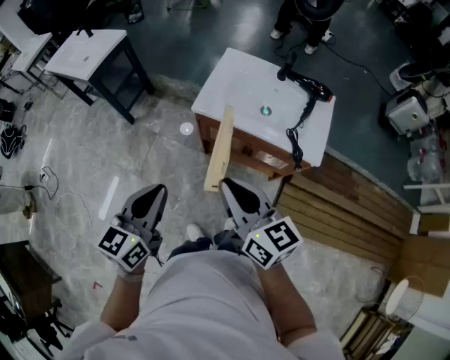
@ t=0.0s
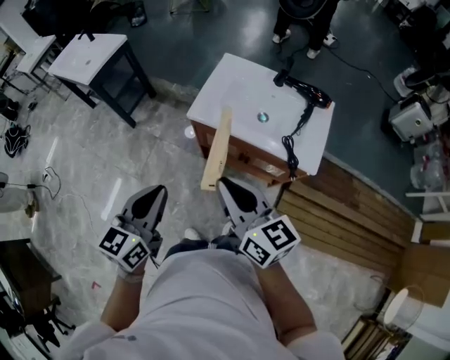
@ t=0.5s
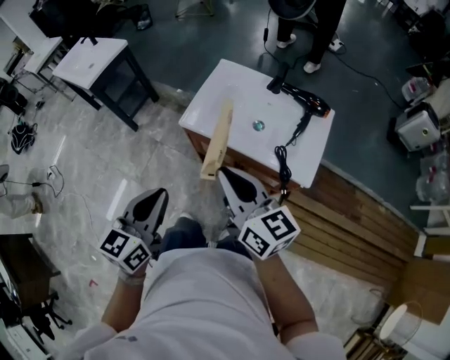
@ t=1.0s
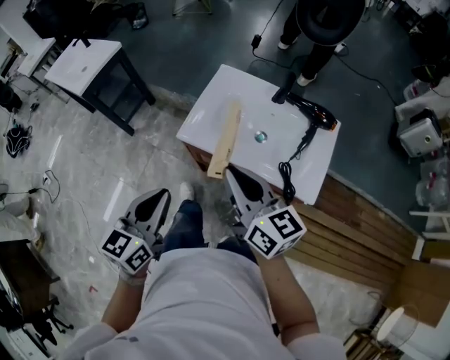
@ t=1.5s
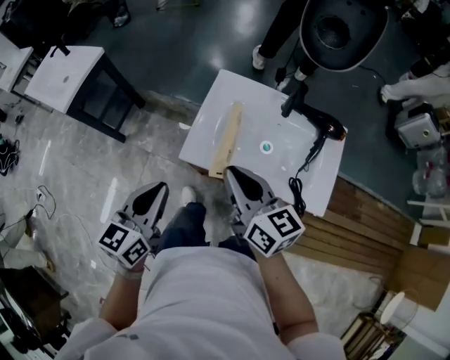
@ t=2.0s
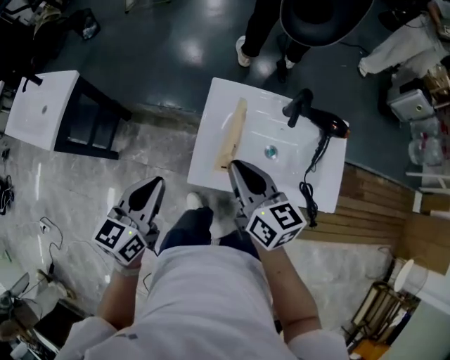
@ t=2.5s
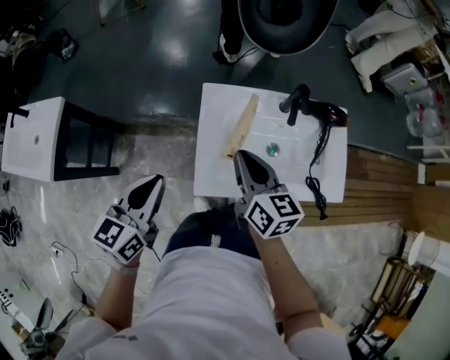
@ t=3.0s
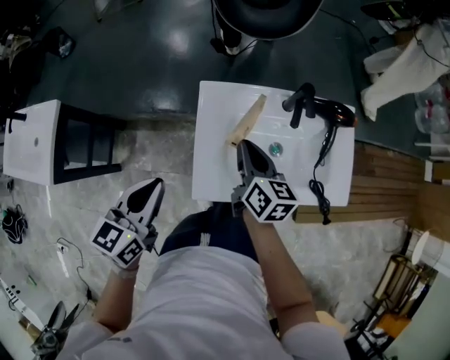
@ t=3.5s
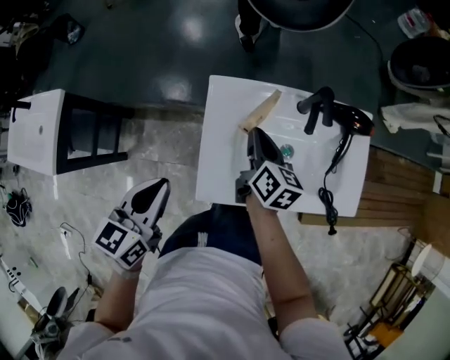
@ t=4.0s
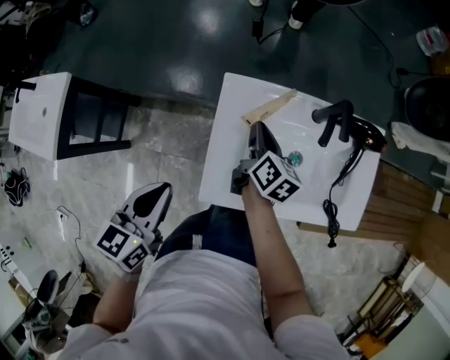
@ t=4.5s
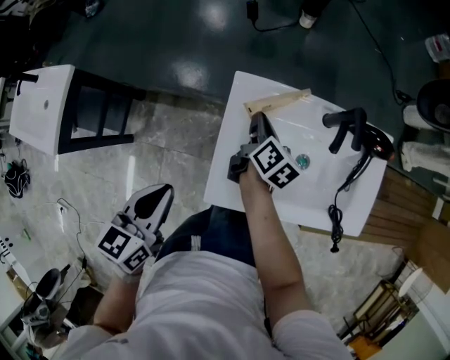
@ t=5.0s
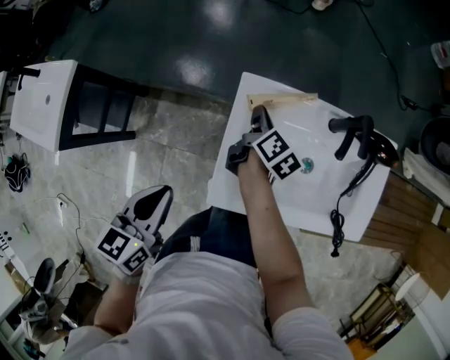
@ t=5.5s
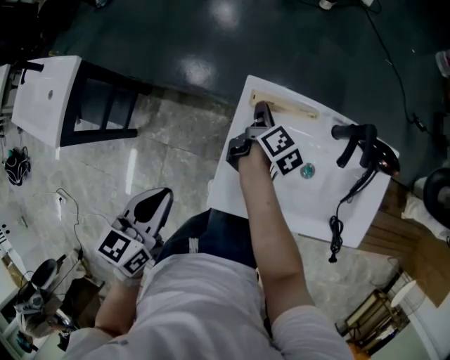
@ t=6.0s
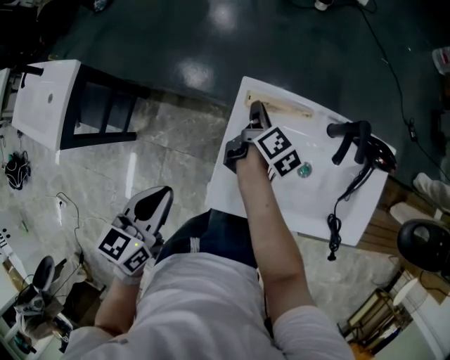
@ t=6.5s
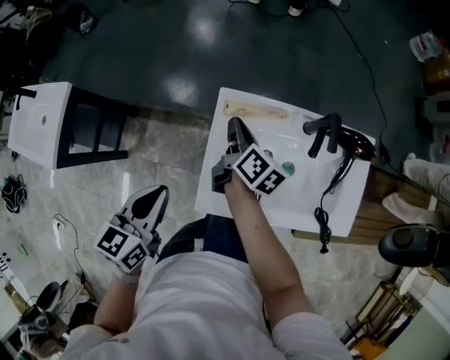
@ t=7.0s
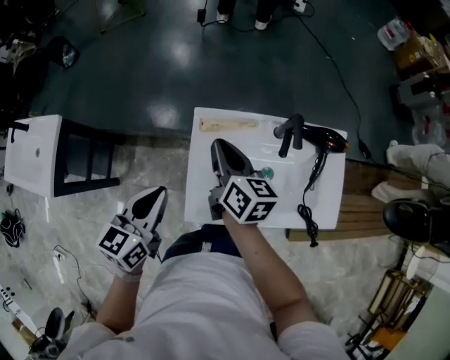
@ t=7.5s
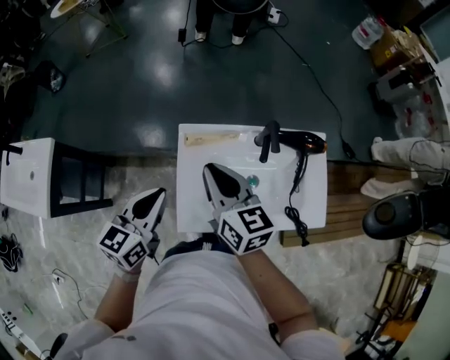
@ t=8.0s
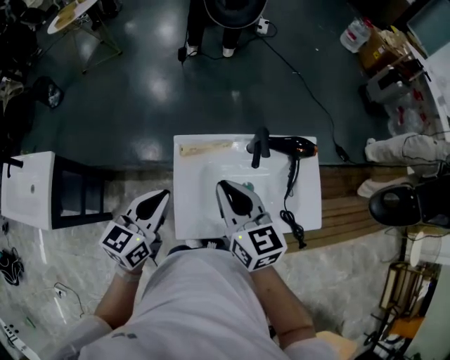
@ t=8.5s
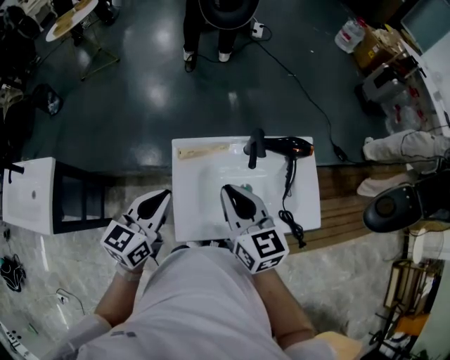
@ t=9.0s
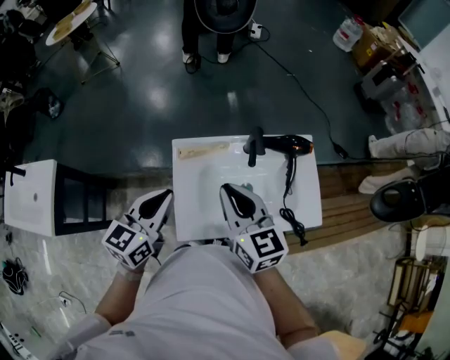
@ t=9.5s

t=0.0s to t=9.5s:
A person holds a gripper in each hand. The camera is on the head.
t=0.0s to t=2.0s: The two grippers go some 25 cm forward.
t=2.0s to t=4.0s: The right gripper changes place by roughly 30 cm, and rotates about 40 degrees. Meanwhile the left gripper ends up roughly 20 cm from where it was, and swivels approximately 20 degrees.
t=4.0s to t=5.5s: The left gripper moves about 5 cm. The right gripper moves downward, to the left and forward, some 15 cm.
t=5.5s to t=7.5s: The right gripper is displaced upward by some 15 cm, and rotates approximately 30 degrees. The left gripper shifts about 10 cm to the right, upward and forward.
t=7.5s to t=9.5s: The right gripper shifts roughly 15 cm upward, to the right and backward, and swivels about 30 degrees; the left gripper shifts roughly 5 cm to the right.

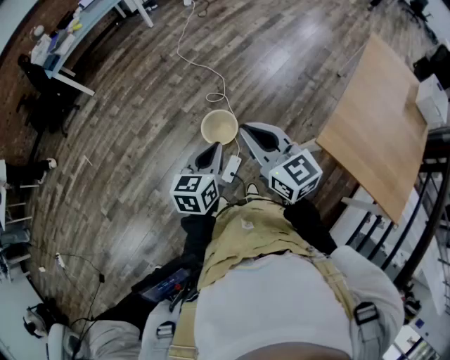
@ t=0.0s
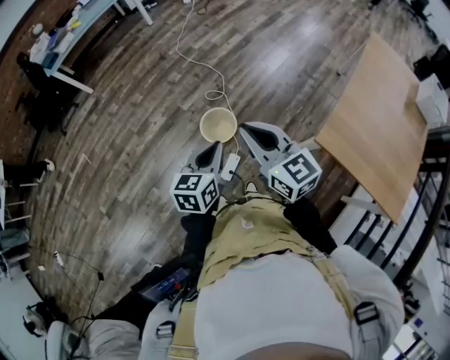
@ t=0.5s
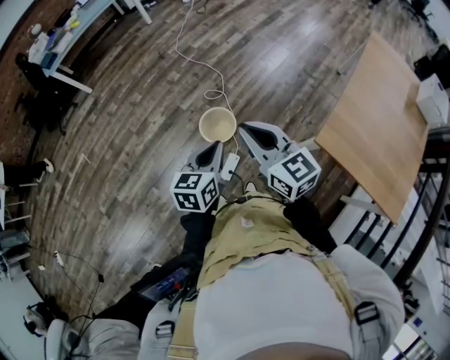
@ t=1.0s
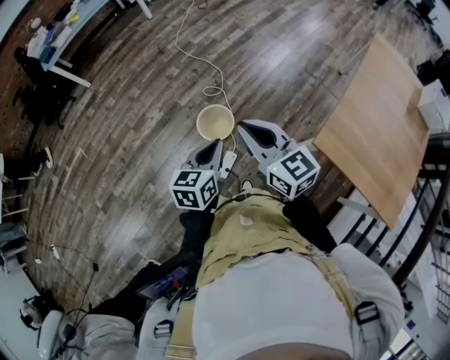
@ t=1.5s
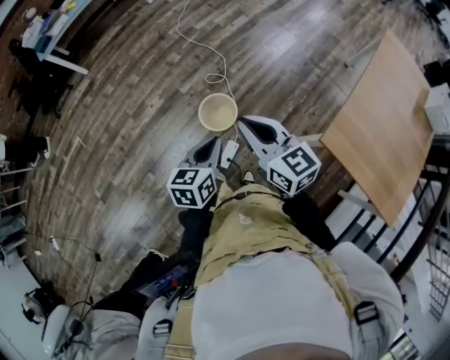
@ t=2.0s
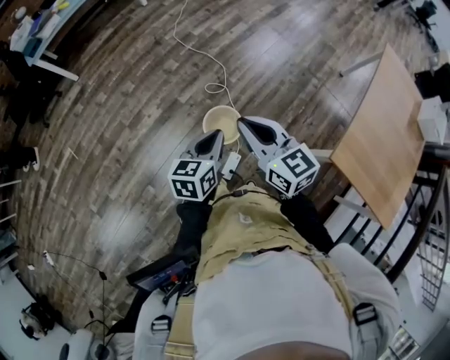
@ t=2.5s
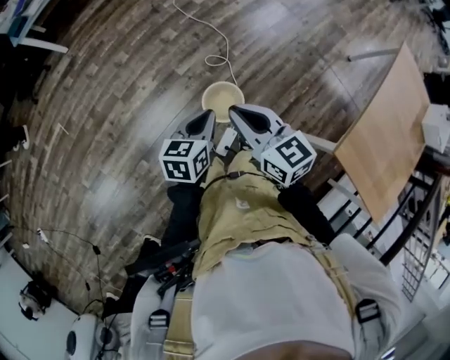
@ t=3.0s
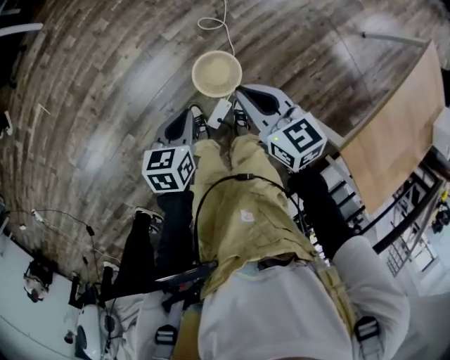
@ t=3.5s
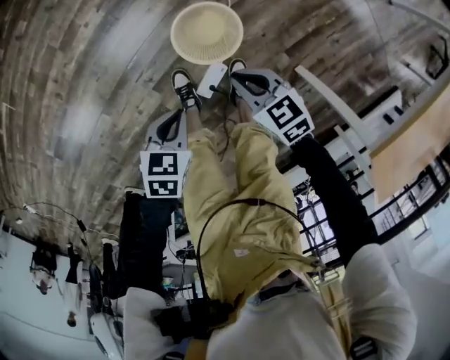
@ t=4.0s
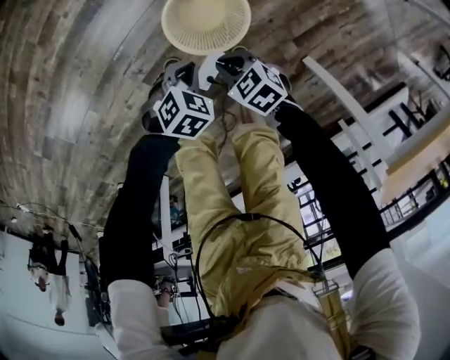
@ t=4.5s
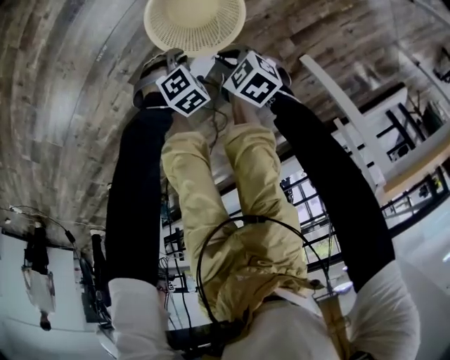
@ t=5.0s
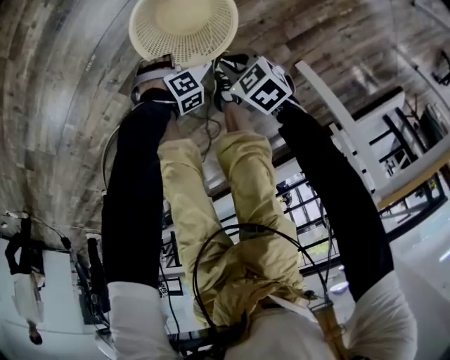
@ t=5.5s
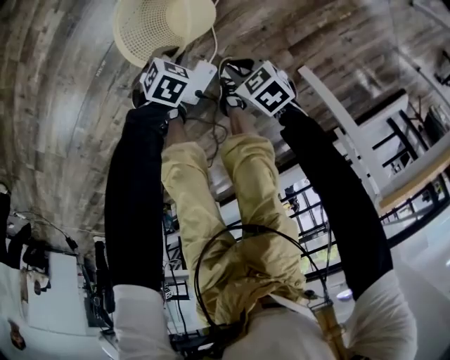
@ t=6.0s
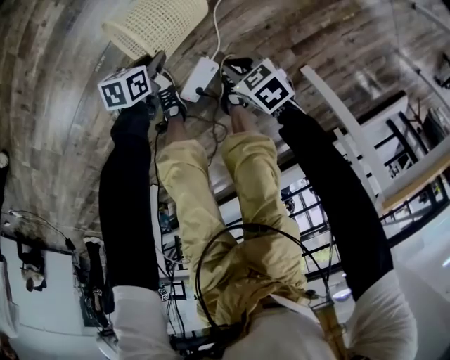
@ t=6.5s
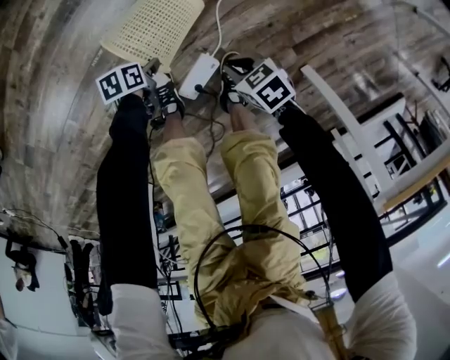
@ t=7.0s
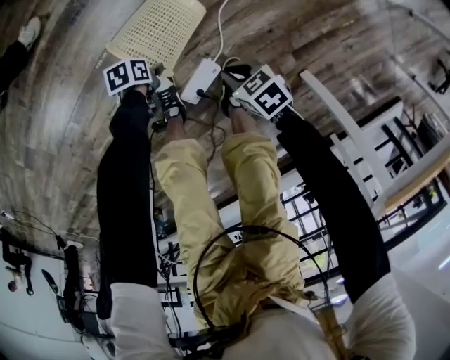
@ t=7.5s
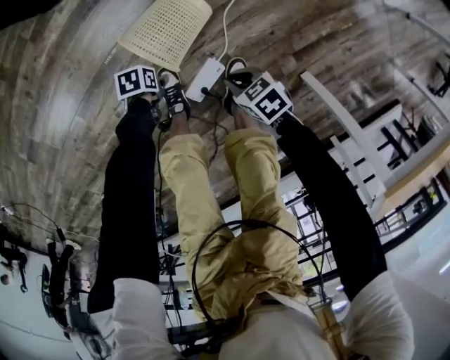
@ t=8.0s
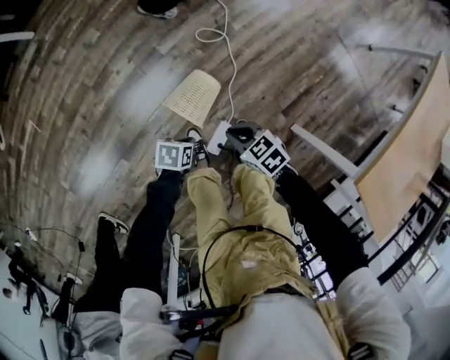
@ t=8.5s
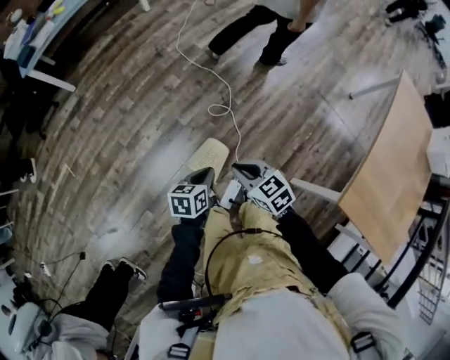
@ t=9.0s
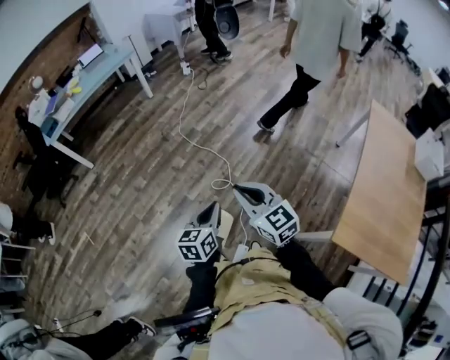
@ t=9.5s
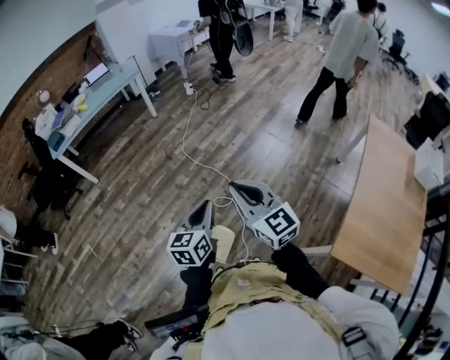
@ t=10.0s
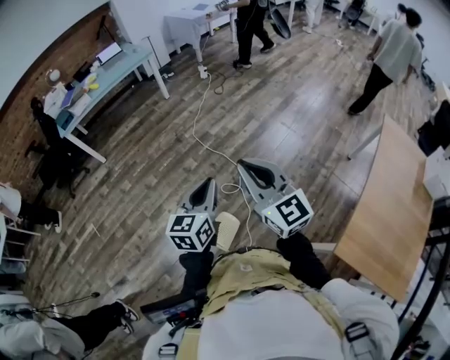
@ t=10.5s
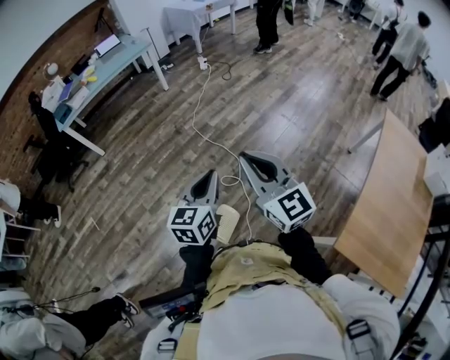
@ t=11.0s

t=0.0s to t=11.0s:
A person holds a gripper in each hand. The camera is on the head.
t=0.0s to t=2.0s: The right gripper moves downward and forward, about 10 cm, while the left gripper travels downward by approximately 5 cm.
t=2.0s to t=3.5s: The left gripper goes roughly 30 cm forward, downward and to the left; the right gripper moves forward and downward, about 30 cm, and swivels some 20 degrees.
t=3.5s to t=5.5s: The grippers both shift downward by about 60 cm. The left gripper rolls clockwise, seen from behind, by approximately 80 degrees, and opens, while the right gripper angles its fingers downward, by some 30 degrees.
t=5.5s to t=7.5s: The left gripper shifts by some 10 cm, and rolls counterclockwise, seen from behind, by about 100 degrees.
t=7.5s to t=9.0s: The two grippers go roughly 60 cm upward. The left gripper turns by roughly 50 degrees, and closes. The right gripper changes its angle by roughly 40 degrees.
t=9.0s to t=11.0s: The two grippers go some 35 cm upward. The right gripper tips its fingers upward by about 40 degrees. The left gripper changes its angle by some 40 degrees.

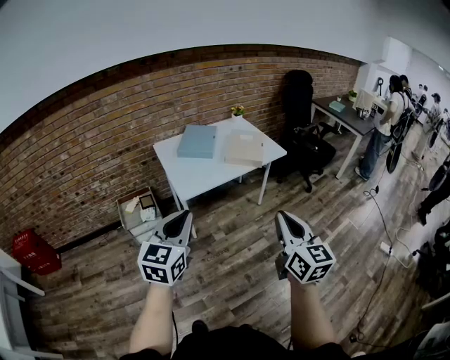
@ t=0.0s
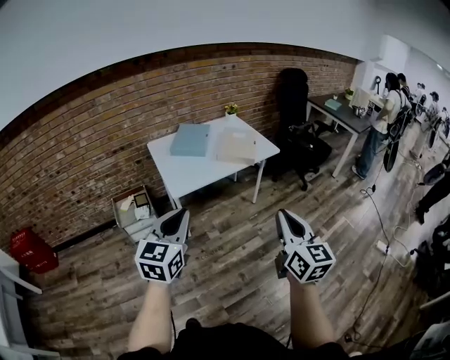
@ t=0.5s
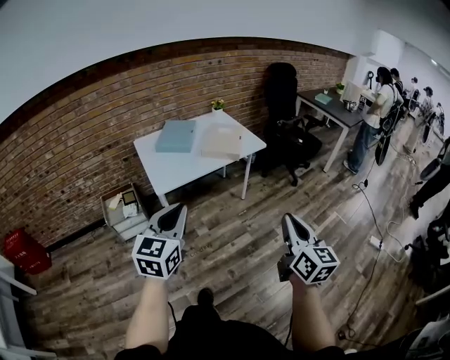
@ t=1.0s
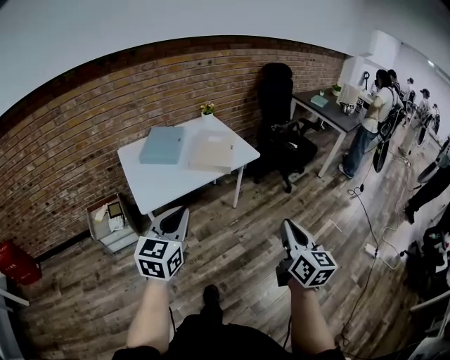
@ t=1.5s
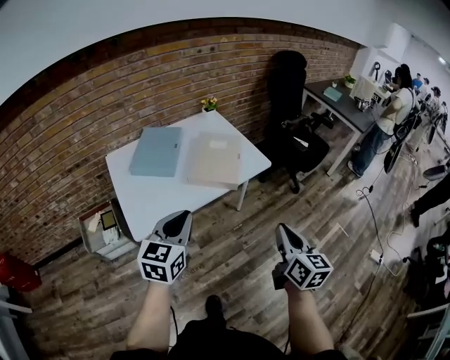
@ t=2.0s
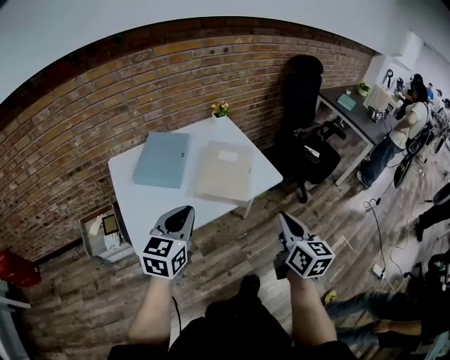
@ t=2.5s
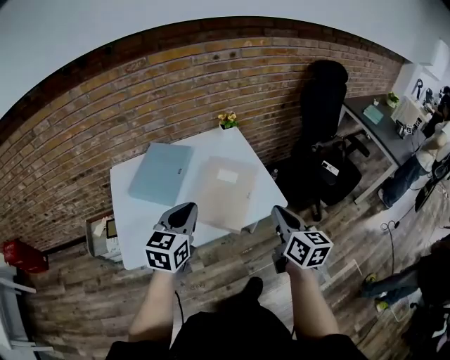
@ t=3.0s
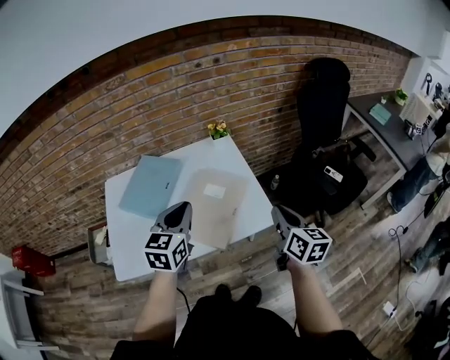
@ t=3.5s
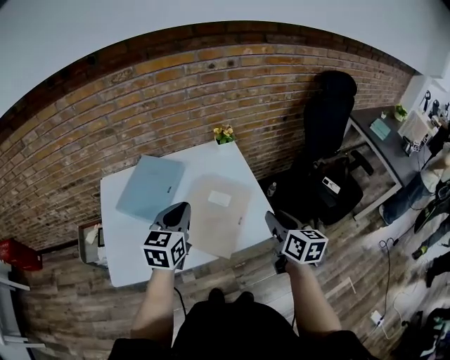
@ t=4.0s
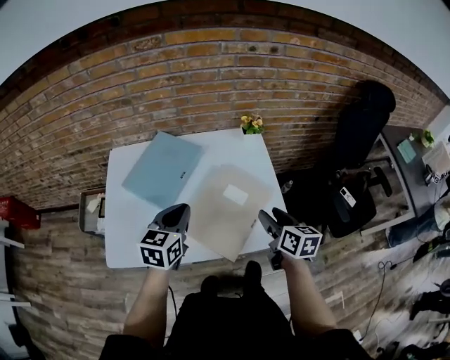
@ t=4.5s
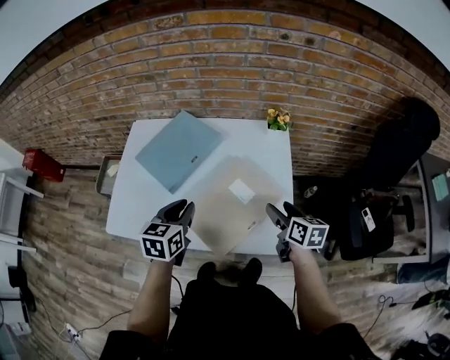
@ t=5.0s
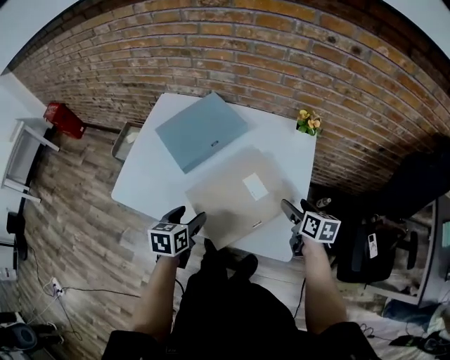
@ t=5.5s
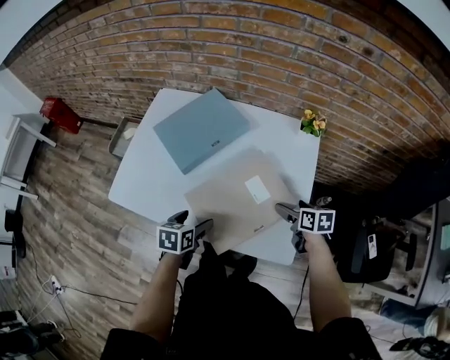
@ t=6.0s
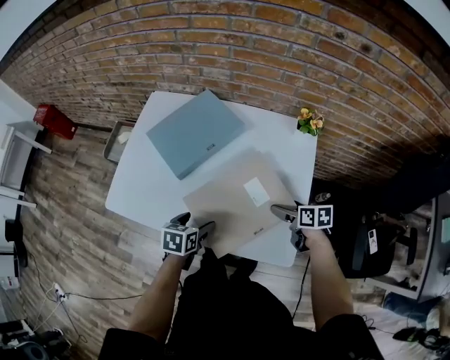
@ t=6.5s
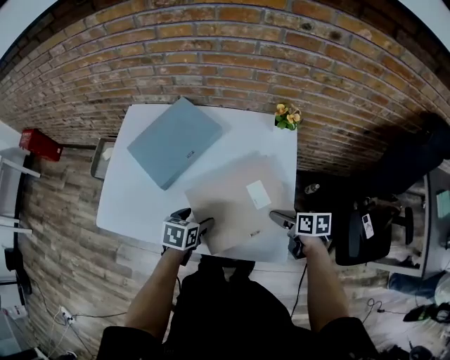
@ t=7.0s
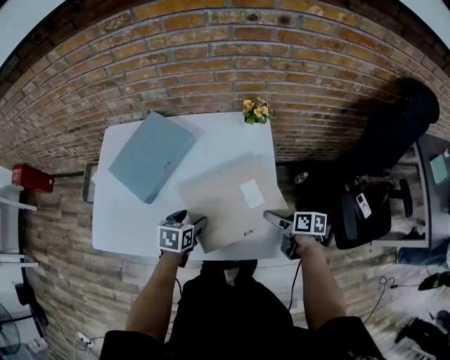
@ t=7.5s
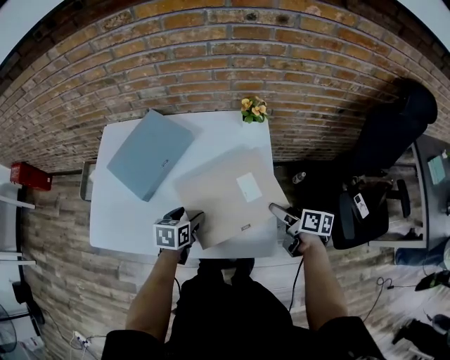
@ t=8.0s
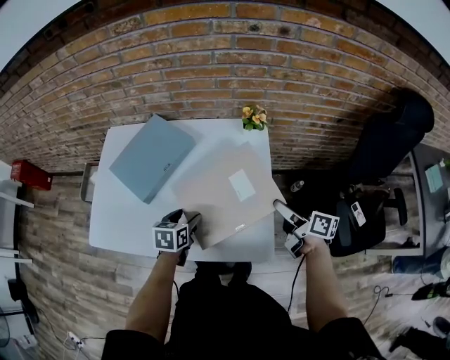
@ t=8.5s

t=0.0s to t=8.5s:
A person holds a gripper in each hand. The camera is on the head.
t=0.0s to t=2.0s: The right gripper goes roughly 30 cm forward and to the right, while the left gripper is displaced forward by about 30 cm.
t=2.0s to t=4.0s: The two grippers go some 35 cm forward. The right gripper turns by about 20 degrees.
t=4.0s to t=6.5s: Both grippers move downward, about 25 cm. The left gripper points its fingers about 30 degrees further downward, and opens its fingers, while the right gripper turns by about 60 degrees, and opens.
t=6.5s to t=8.5s: The left gripper goes about 10 cm to the right and forward. The right gripper goes about 15 cm upward and to the right, angles its fingers upward, by about 30 degrees, and closes.
